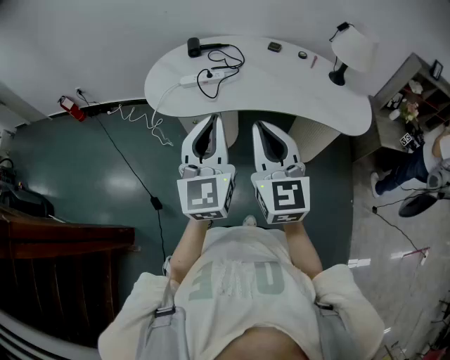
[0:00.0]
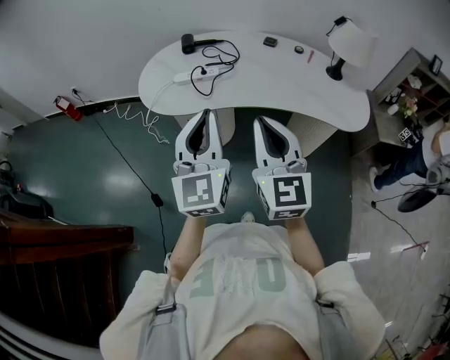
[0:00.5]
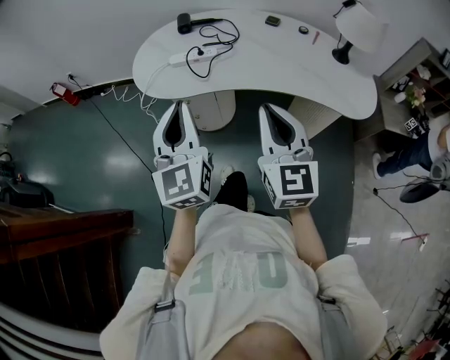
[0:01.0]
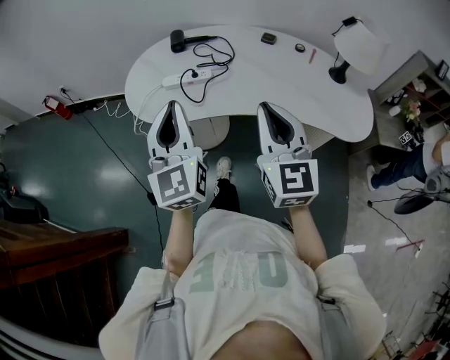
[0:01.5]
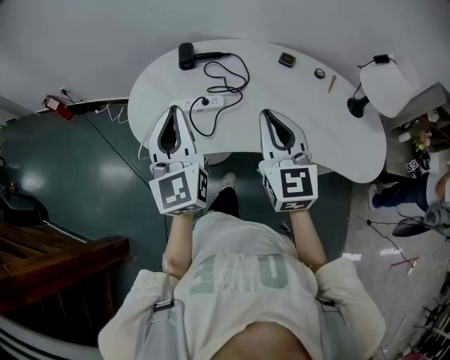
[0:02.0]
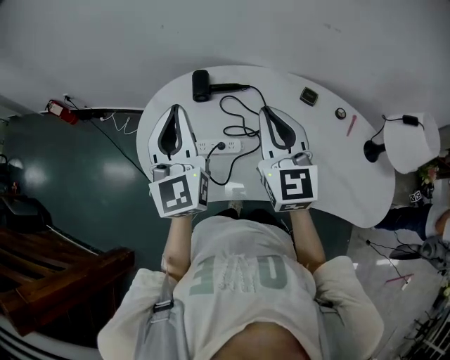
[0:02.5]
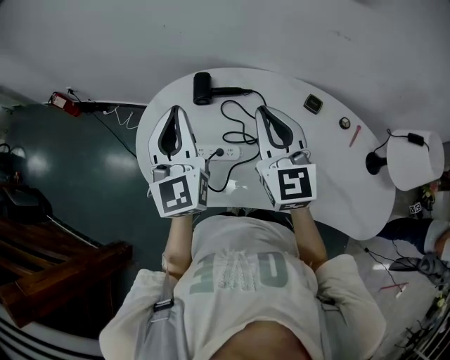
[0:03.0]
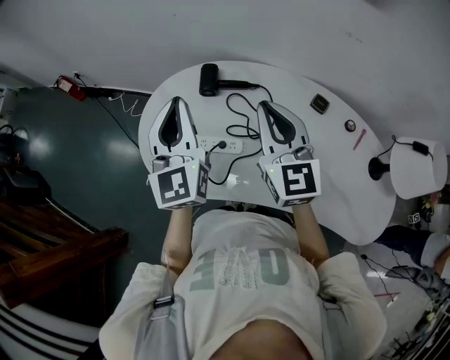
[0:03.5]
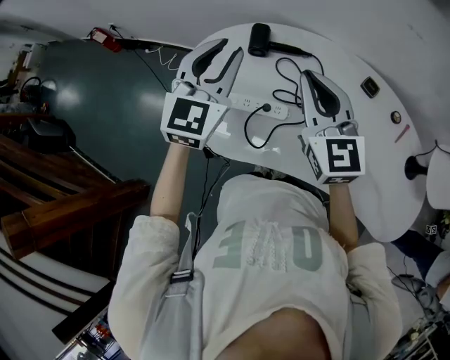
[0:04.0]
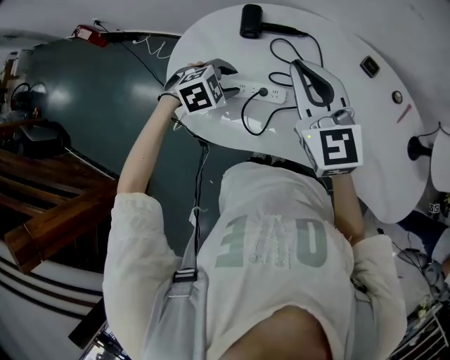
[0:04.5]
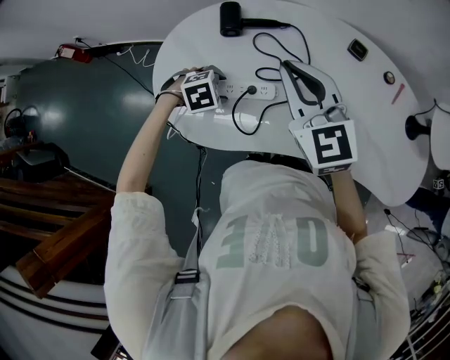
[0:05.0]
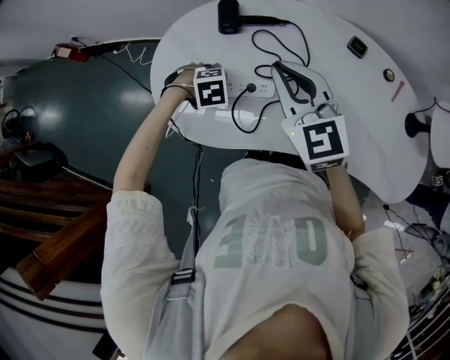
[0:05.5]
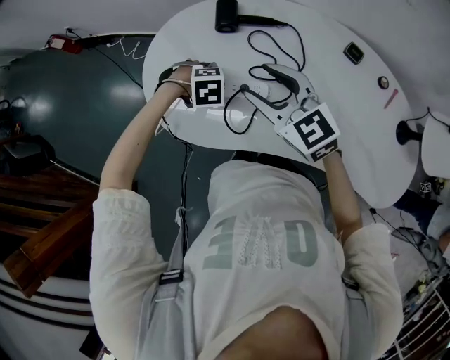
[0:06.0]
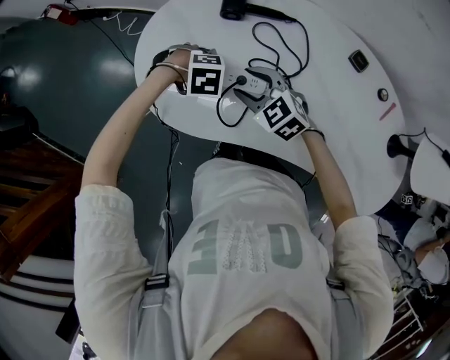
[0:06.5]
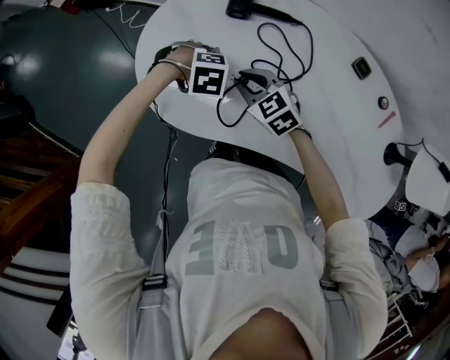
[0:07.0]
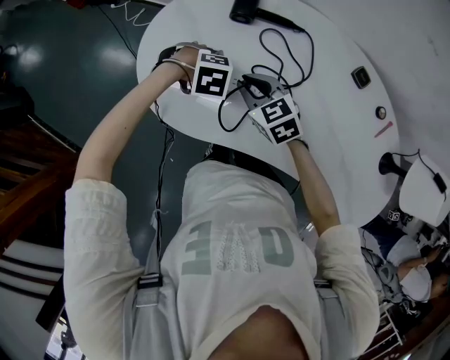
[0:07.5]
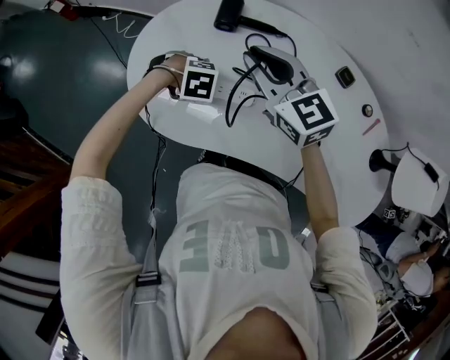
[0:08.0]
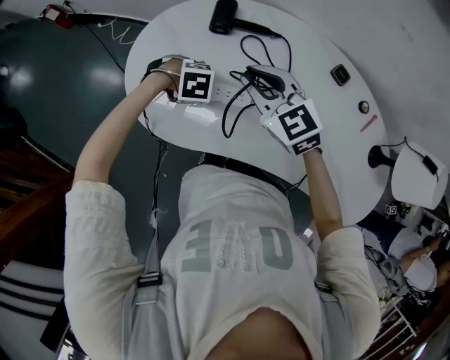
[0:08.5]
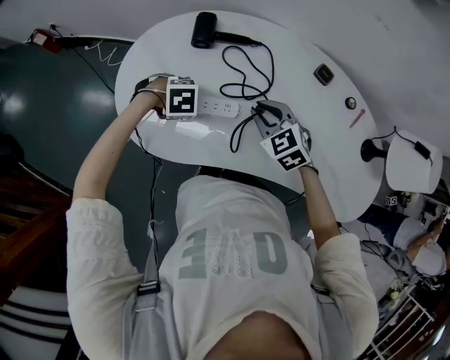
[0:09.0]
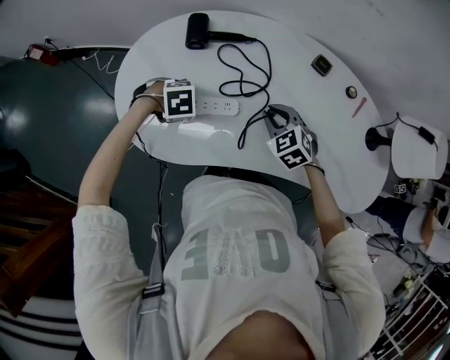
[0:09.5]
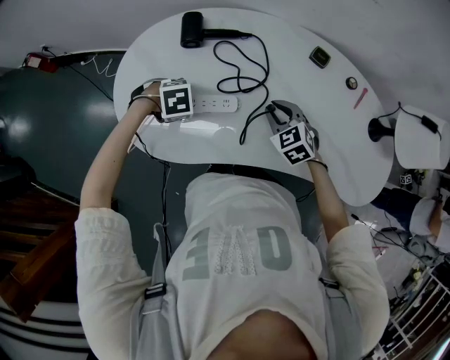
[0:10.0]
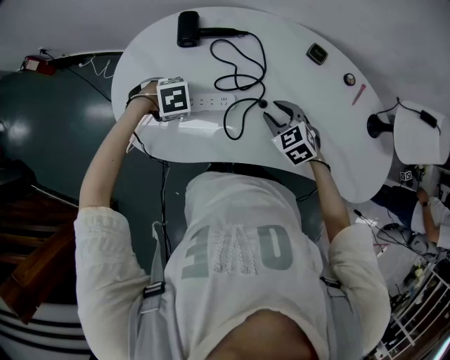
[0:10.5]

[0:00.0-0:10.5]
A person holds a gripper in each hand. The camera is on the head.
0:00.0 to 0:02.0: The grippers both shift forward by about 25 cm.
0:02.0 to 0:04.0: Both grippers move forward, some 20 cm. The left gripper rotates roughly 30 degrees.
0:04.0 to 0:06.5: Both grippers travel together downward, some 30 cm. The left gripper tilts its fingers some 80 degrees downward, and opens its fingers, while the right gripper angles its fingers downward, by some 30 degrees, and opens up.
0:06.5 to 0:08.5: The right gripper travels upward by approximately 10 cm, and closes.
0:08.5 to 0:10.5: The right gripper shifts by some 20 cm, rotates approximately 30 degrees, and opens its fingers.

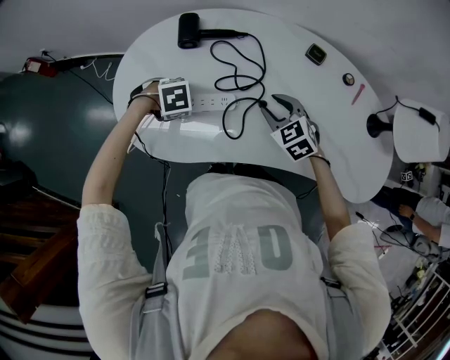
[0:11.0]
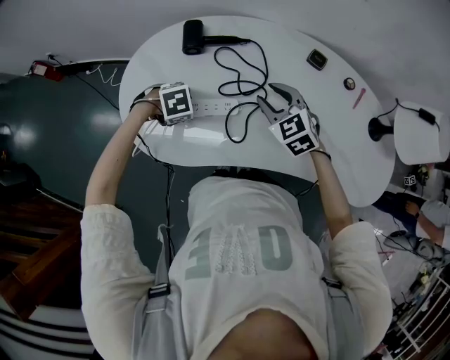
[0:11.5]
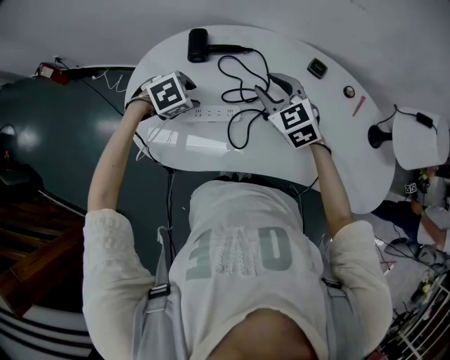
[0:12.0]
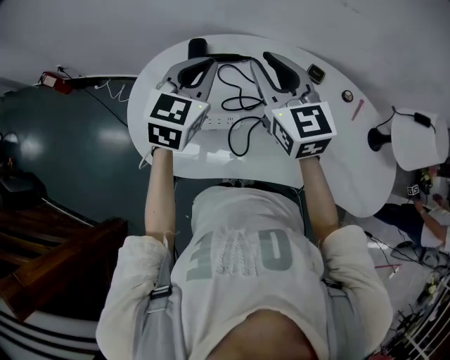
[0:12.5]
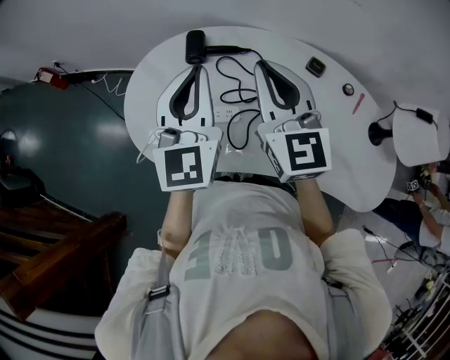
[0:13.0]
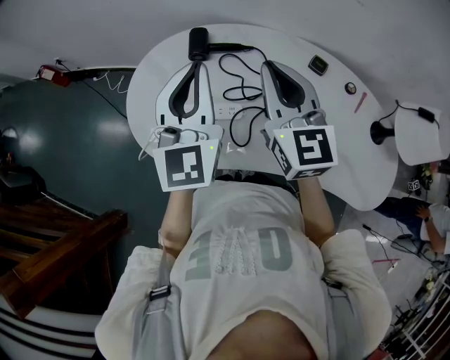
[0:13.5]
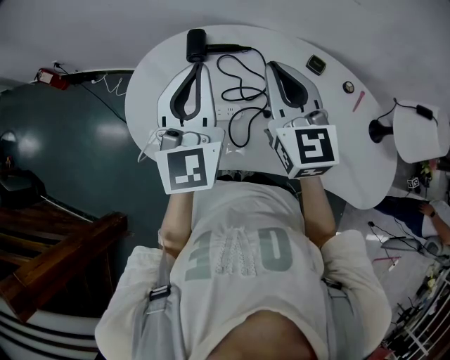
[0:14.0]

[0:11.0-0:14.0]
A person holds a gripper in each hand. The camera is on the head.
0:11.0 to 0:12.5: Both grippers move upward, about 25 cm. The right gripper tilts its fingers roughly 40 degrees upward, while the left gripper tilts its fingers roughly 60 degrees upward, and closes.
0:12.5 to 0:14.0: The right gripper closes up. The left gripper travels backward and upward by about 10 cm, and turns by roughly 30 degrees.

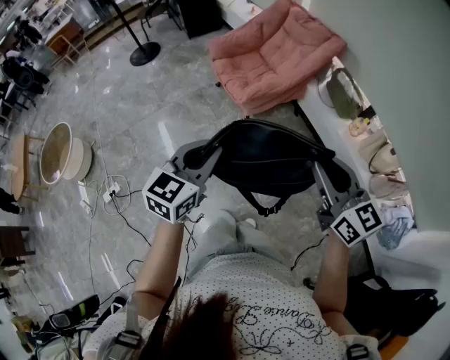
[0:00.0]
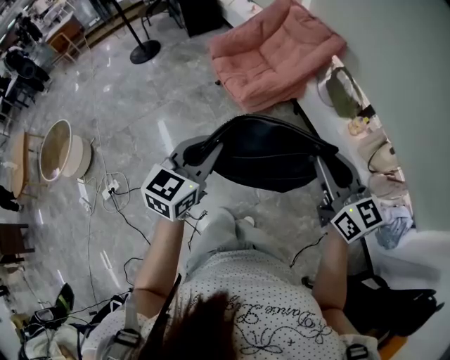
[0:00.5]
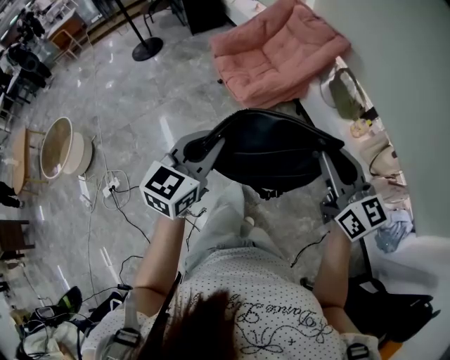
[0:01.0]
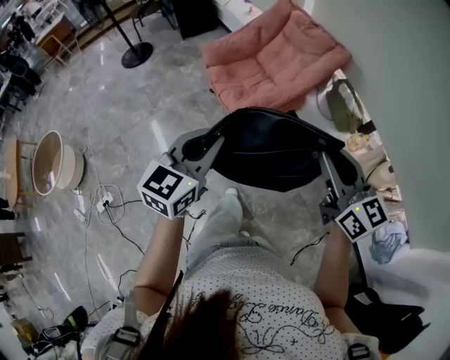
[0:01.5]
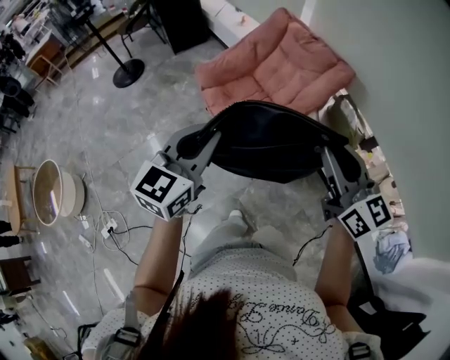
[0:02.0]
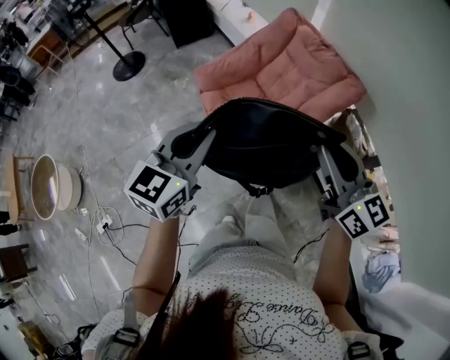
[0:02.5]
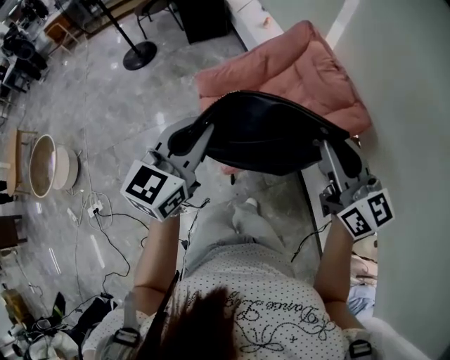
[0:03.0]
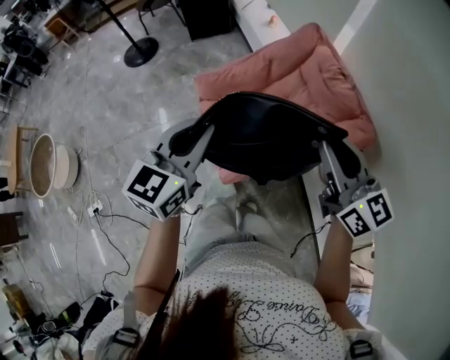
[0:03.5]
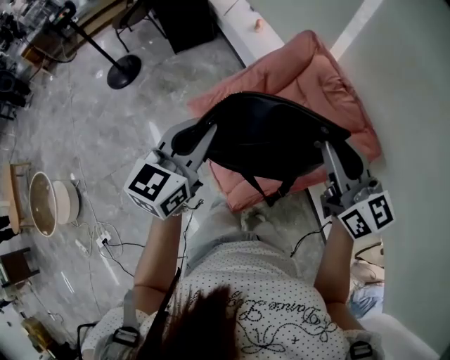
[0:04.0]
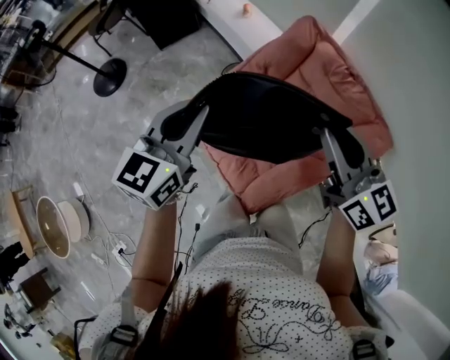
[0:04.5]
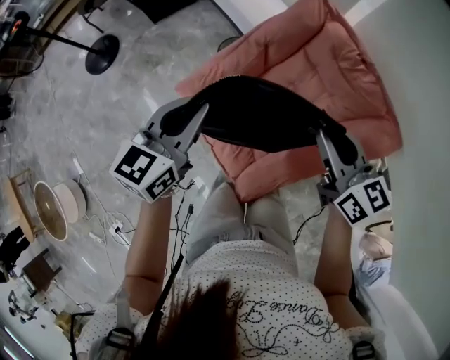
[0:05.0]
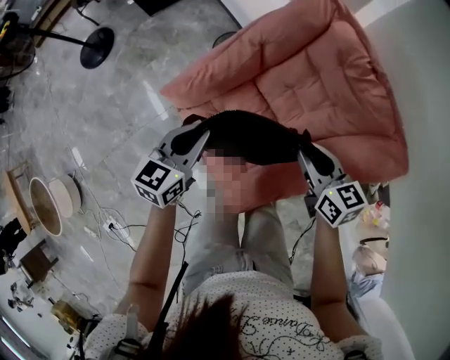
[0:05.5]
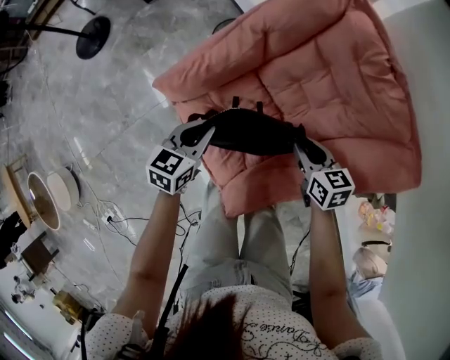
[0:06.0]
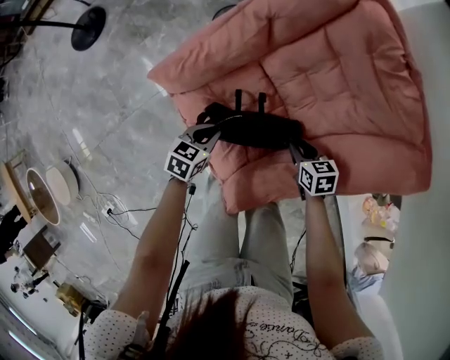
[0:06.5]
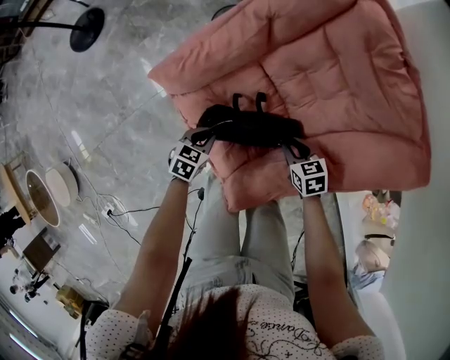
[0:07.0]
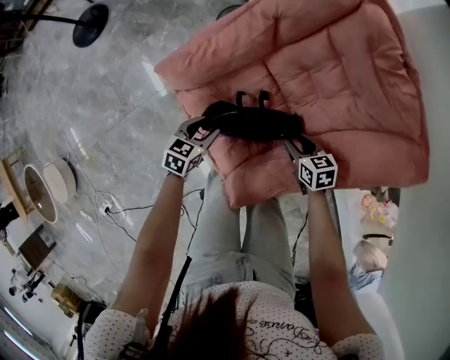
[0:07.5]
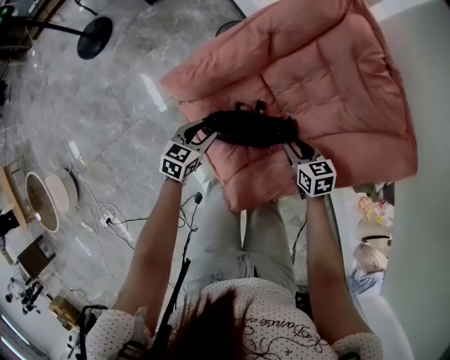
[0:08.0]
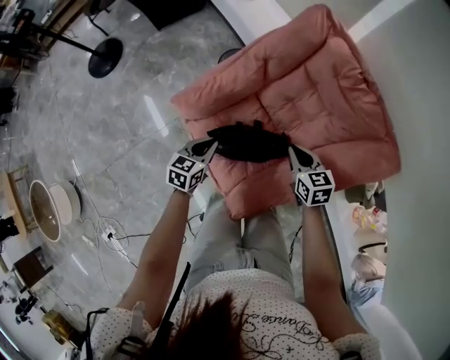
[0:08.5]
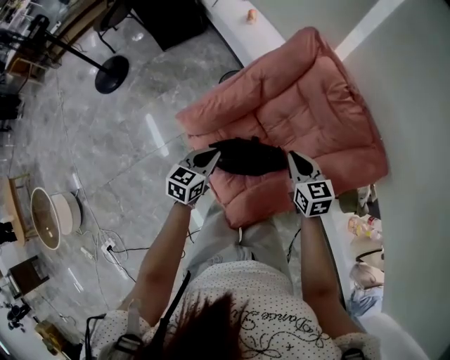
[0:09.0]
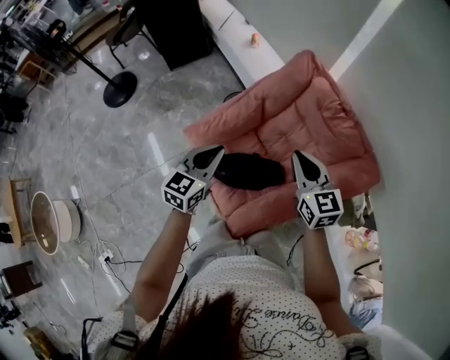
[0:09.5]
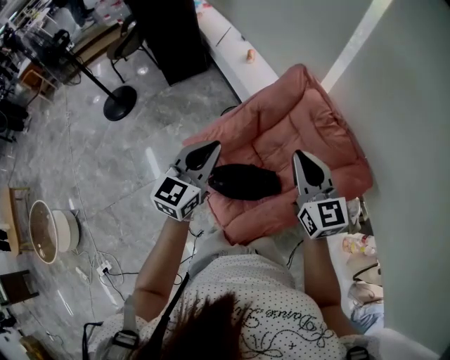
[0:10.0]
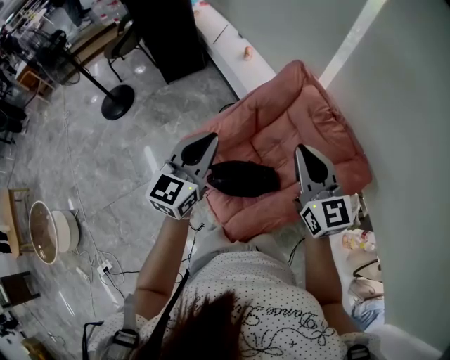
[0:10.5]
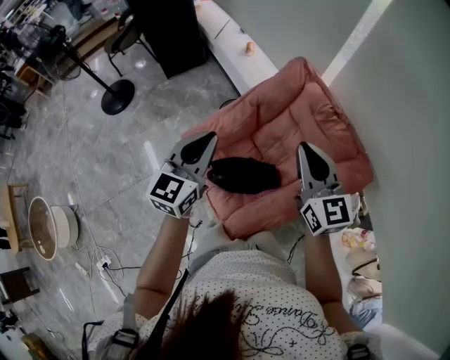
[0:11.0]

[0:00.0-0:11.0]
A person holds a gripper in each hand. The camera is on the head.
0:00.0 to 0:02.0: Both grippers travel together forward, about 30 cm.
0:02.0 to 0:03.5: The grippers both shift forward by roughly 30 cm.
0:03.5 to 0:05.5: The two grippers go some 35 cm downward and forward. The right gripper rotates approximately 30 degrees; the left gripper turns by about 30 degrees.
0:05.5 to 0:07.5: The grippers both shift downward by approximately 25 cm. The left gripper opens up. Meanwhile the right gripper rotates roughly 20 degrees.
0:07.5 to 0:09.0: Both grippers travel together upward, some 25 cm. The right gripper changes its angle by about 30 degrees, and closes its fingers. The left gripper closes its fingers.
0:09.0 to 0:11.0: Both grippers travel together upward, about 25 cm. The left gripper turns by approximately 30 degrees. The right gripper changes its angle by roughly 30 degrees.

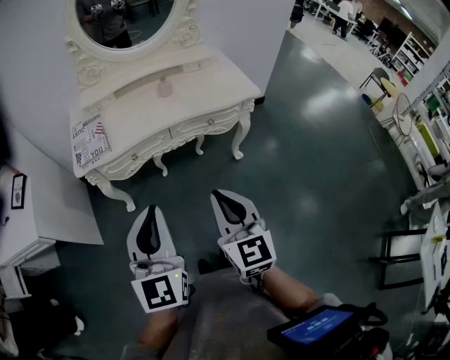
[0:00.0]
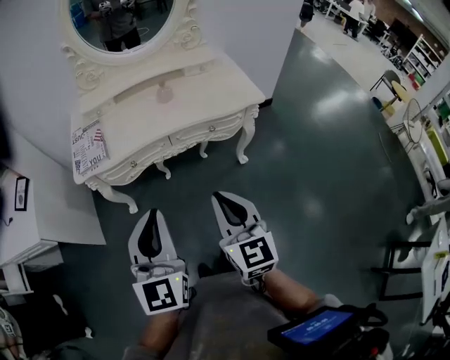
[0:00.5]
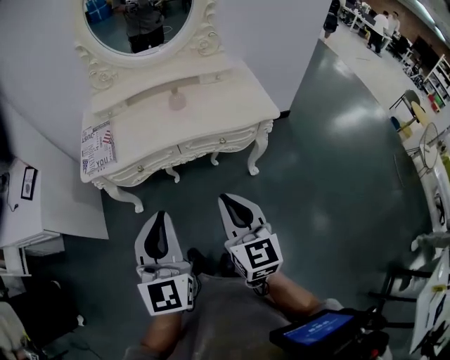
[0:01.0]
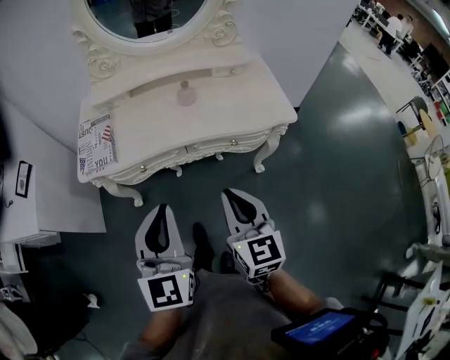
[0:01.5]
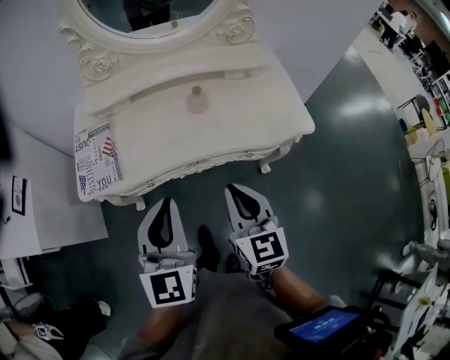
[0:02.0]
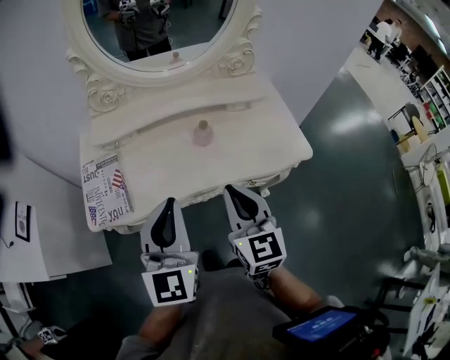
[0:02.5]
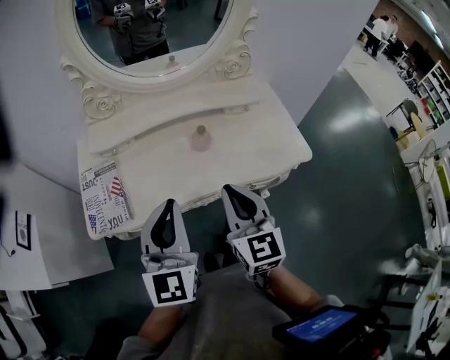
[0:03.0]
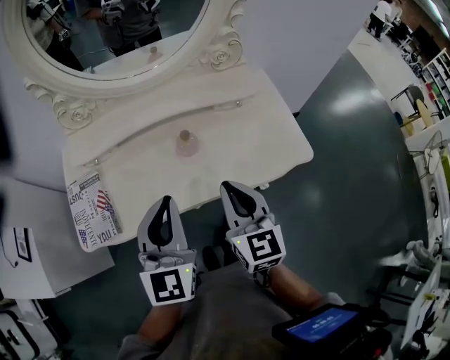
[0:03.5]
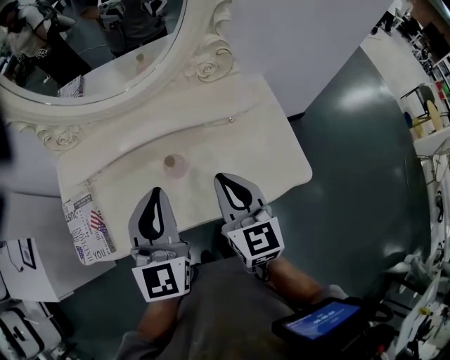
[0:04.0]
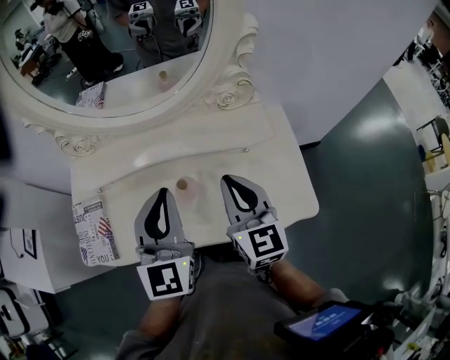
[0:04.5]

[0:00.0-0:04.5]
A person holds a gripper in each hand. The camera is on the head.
0:00.0 to 0:02.0: The grippers both shift forward by some 25 cm.
0:02.0 to 0:04.5: The grippers both shift forward by approximately 30 cm.
